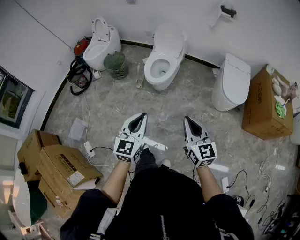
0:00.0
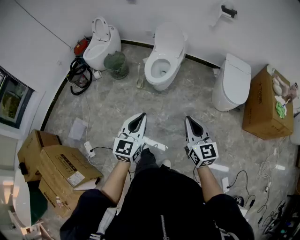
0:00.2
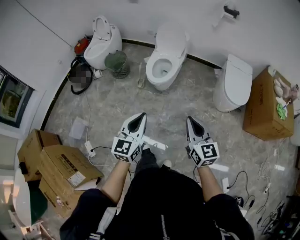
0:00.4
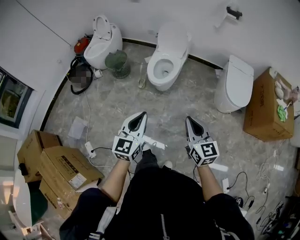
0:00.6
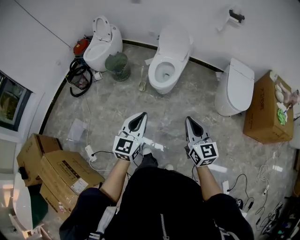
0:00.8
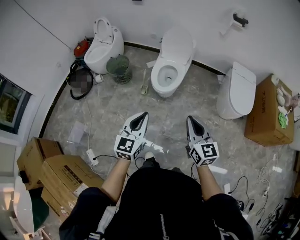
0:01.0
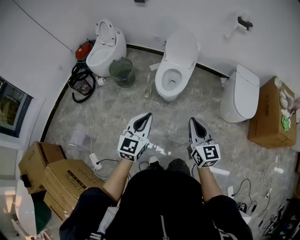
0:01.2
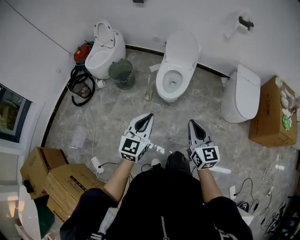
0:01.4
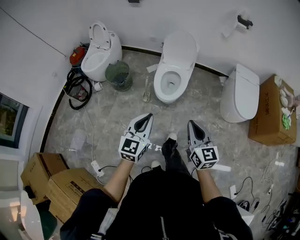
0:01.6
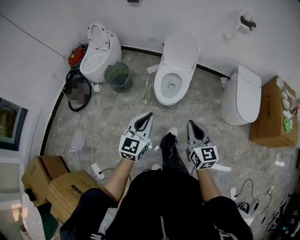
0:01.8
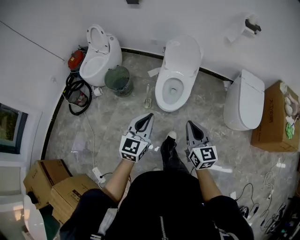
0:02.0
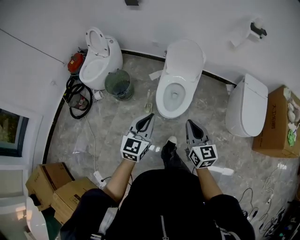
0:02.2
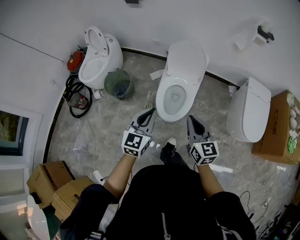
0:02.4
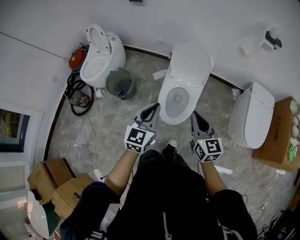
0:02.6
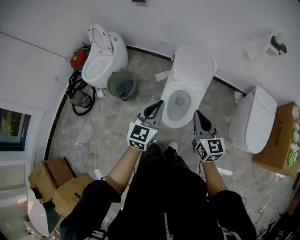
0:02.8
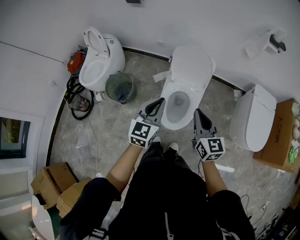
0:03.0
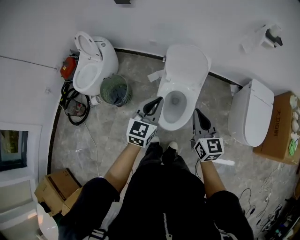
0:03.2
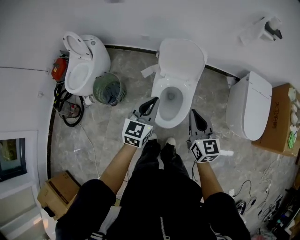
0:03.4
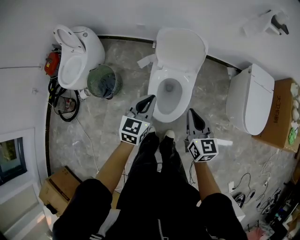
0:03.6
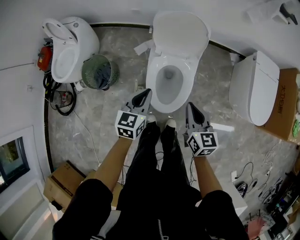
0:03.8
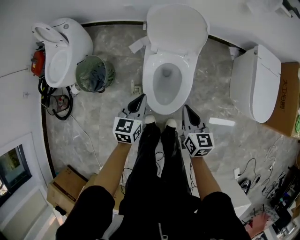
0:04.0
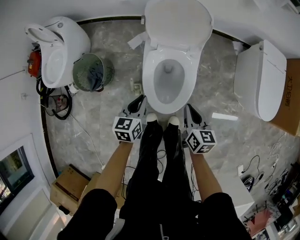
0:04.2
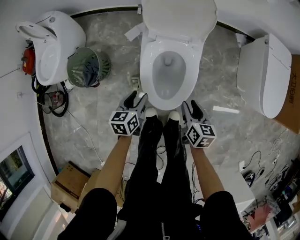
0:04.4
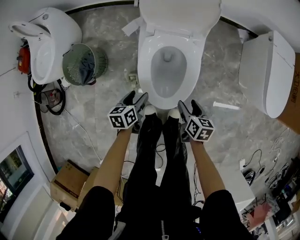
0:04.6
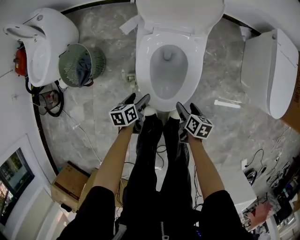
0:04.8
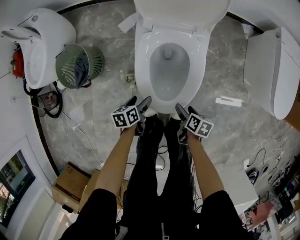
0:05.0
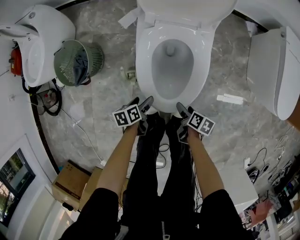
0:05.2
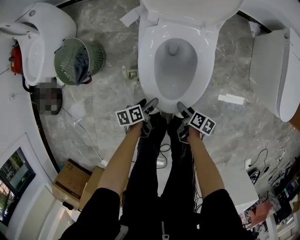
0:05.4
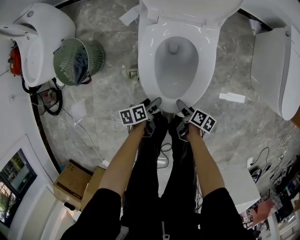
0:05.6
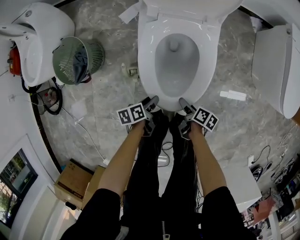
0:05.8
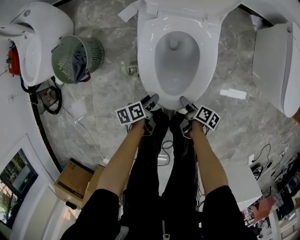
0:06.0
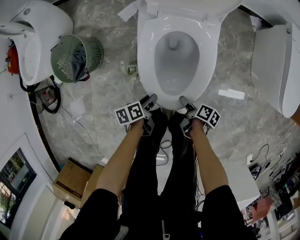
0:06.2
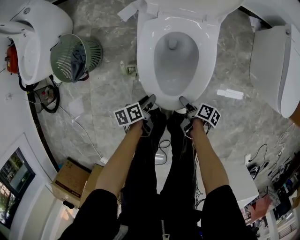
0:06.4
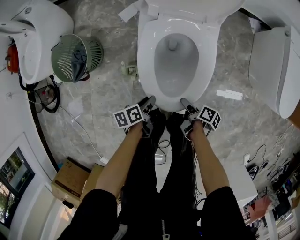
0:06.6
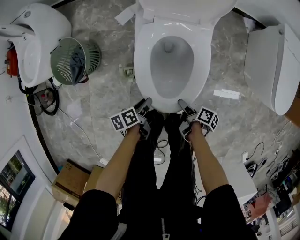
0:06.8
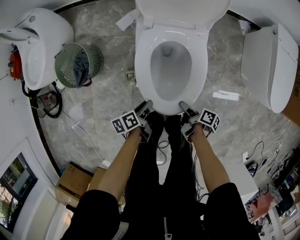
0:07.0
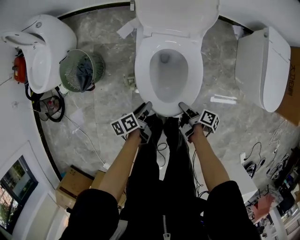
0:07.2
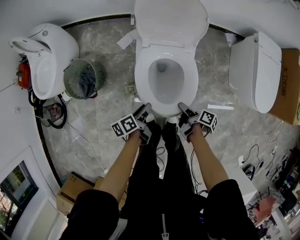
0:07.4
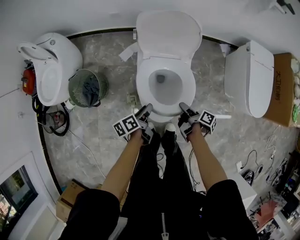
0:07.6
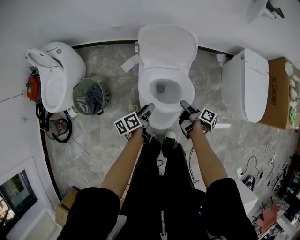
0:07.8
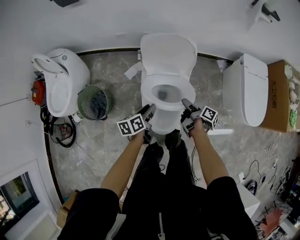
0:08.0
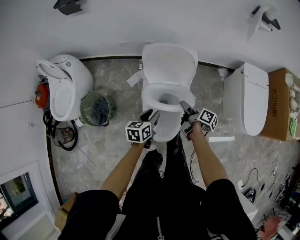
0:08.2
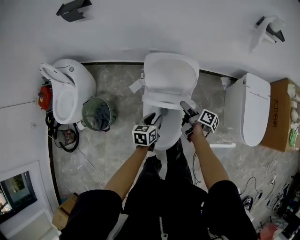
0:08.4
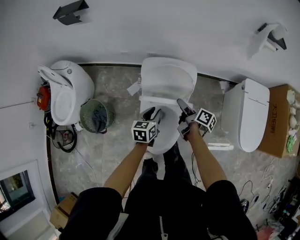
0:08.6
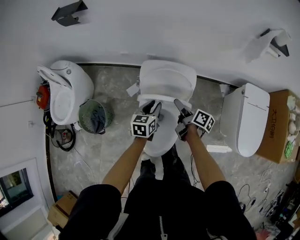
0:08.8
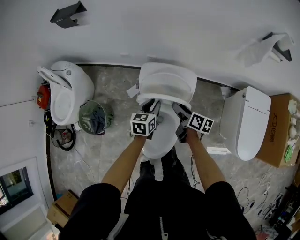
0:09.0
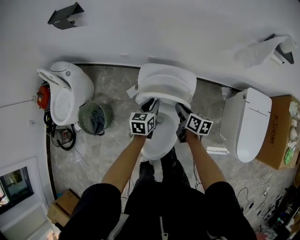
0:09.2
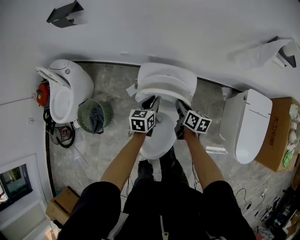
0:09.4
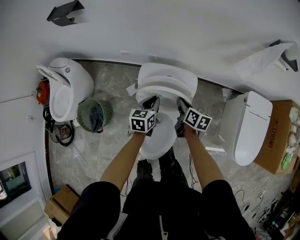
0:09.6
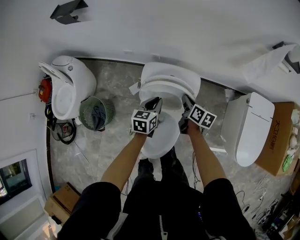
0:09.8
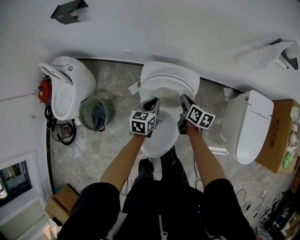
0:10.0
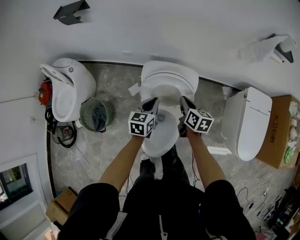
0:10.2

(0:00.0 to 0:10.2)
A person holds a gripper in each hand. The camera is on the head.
0:00.0 - 0:01.4: Both grippers move forward and to the left, roughly 25 cm.
0:01.4 - 0:03.0: The two grippers travel together, forward, some 50 cm.
0:03.0 - 0:04.4: Both grippers travel together downward, some 40 cm. The left gripper turns by about 40 degrees, and opens. Meanwhile the right gripper turns by about 40 degrees, and opens its fingers.
0:04.4 - 0:05.8: The grippers both shift downward by approximately 25 cm. The right gripper rolls clockwise, seen from behind, by some 40 degrees, and opens its fingers. The left gripper rotates about 40 degrees, and opens and closes again.
0:05.8 - 0:07.2: The two grippers go about 15 cm upward. The right gripper closes up.
0:07.2 - 0:08.8: Both grippers travel together forward and upward, some 40 cm. The left gripper twists roughly 50 degrees clockwise, seen from behind. The right gripper turns by approximately 30 degrees, and opens its fingers.
0:08.8 - 0:10.2: The right gripper swivels approximately 40 degrees, and closes.

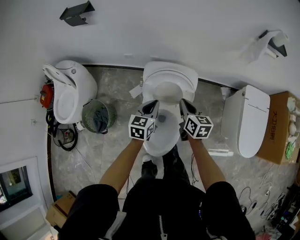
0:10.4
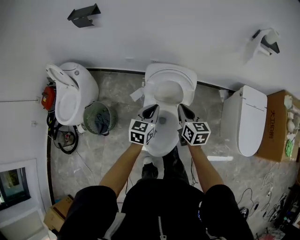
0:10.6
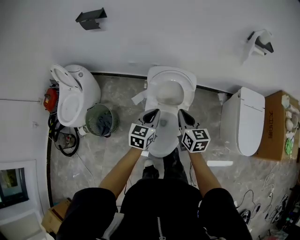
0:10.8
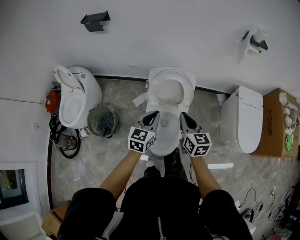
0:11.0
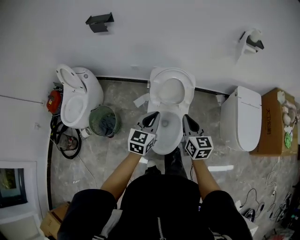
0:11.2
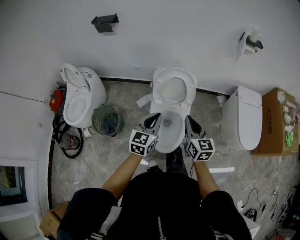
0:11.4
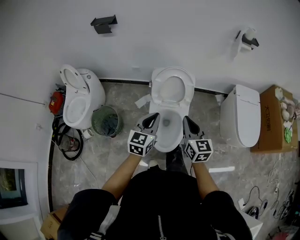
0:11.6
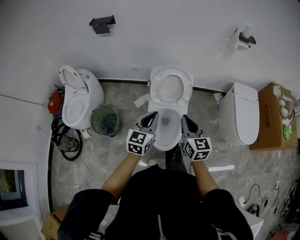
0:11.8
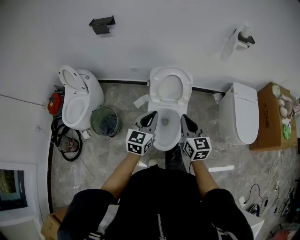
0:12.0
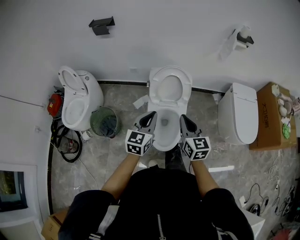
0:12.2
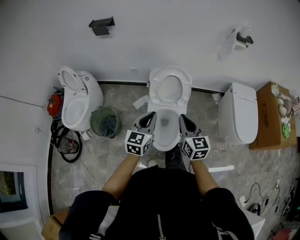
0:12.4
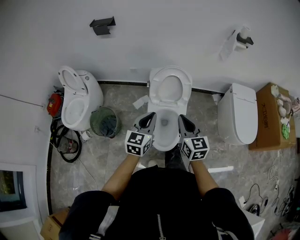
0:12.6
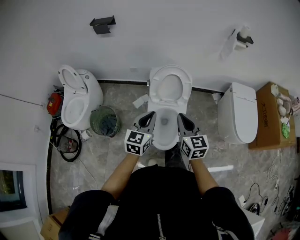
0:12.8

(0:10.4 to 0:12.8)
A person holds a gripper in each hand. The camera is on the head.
0:10.4 - 0:11.6: Both grippers move backward and upward, some 30 cm. The right gripper rotates roughly 20 degrees.
0:11.6 - 0:12.8: The grippers make only small movements.

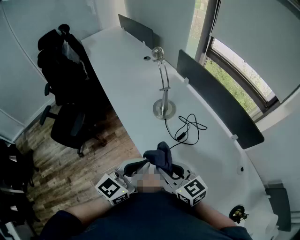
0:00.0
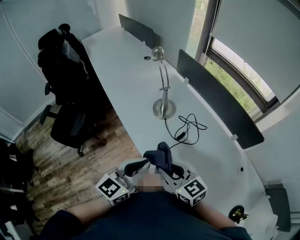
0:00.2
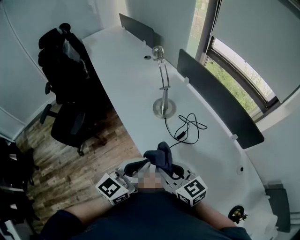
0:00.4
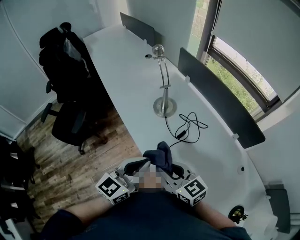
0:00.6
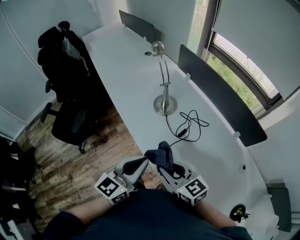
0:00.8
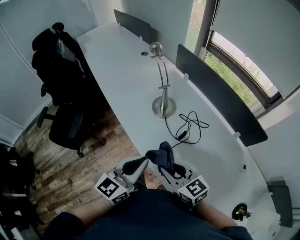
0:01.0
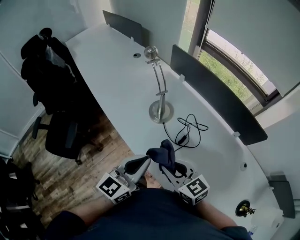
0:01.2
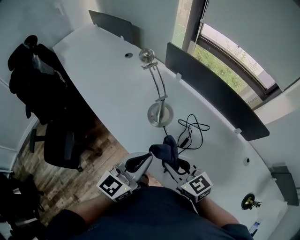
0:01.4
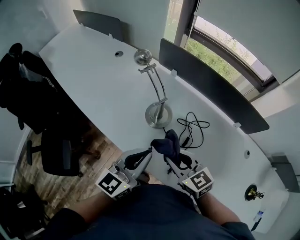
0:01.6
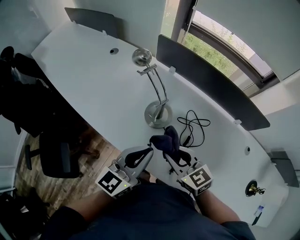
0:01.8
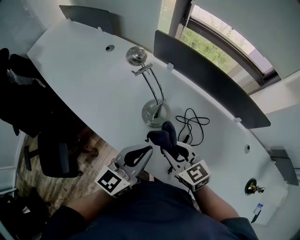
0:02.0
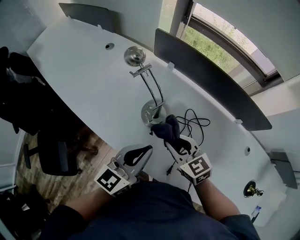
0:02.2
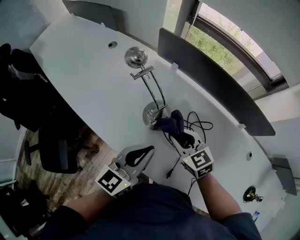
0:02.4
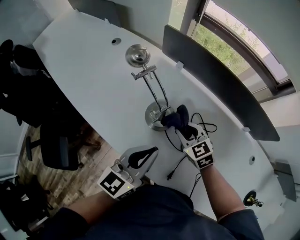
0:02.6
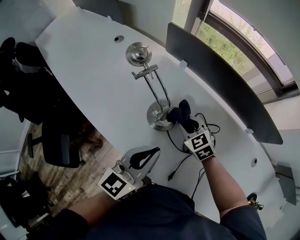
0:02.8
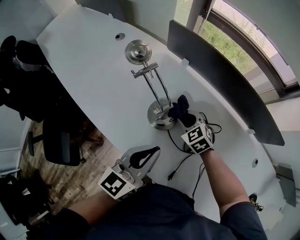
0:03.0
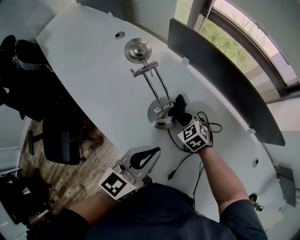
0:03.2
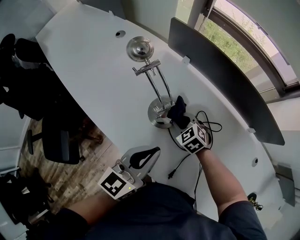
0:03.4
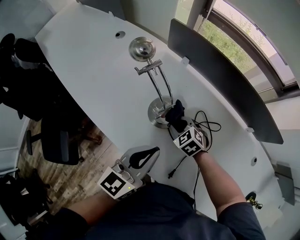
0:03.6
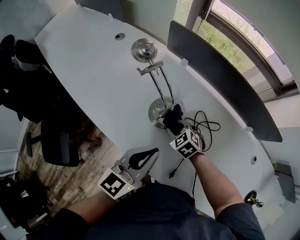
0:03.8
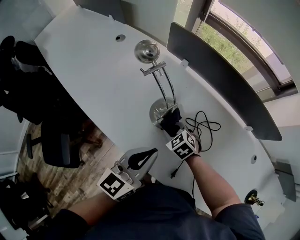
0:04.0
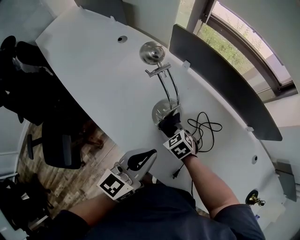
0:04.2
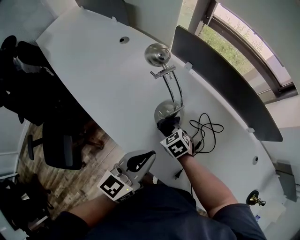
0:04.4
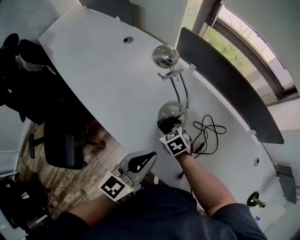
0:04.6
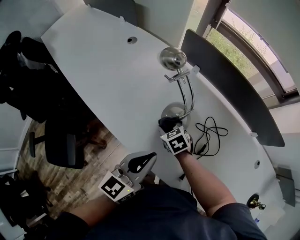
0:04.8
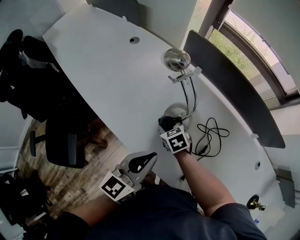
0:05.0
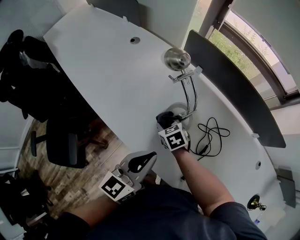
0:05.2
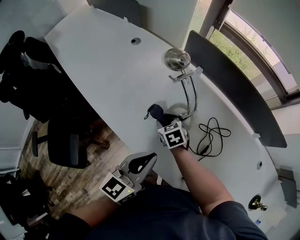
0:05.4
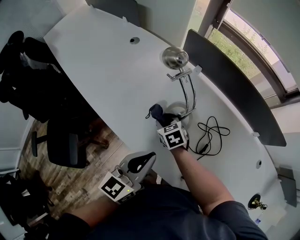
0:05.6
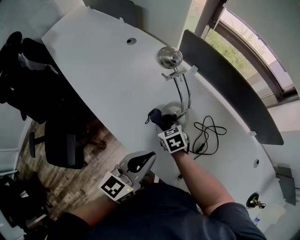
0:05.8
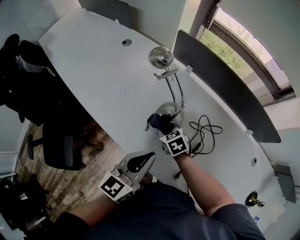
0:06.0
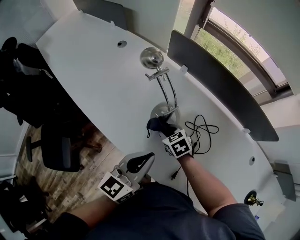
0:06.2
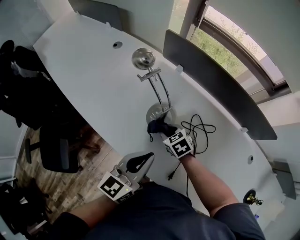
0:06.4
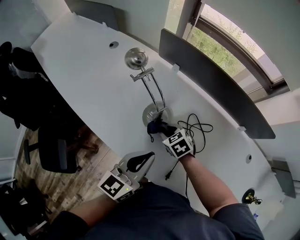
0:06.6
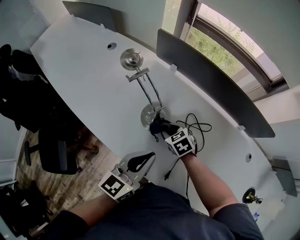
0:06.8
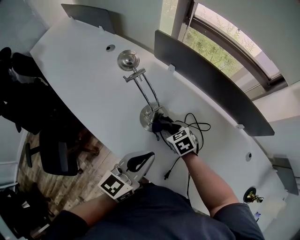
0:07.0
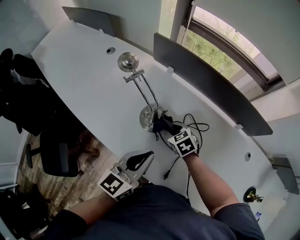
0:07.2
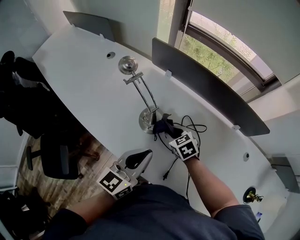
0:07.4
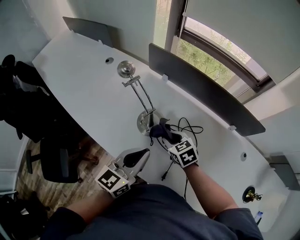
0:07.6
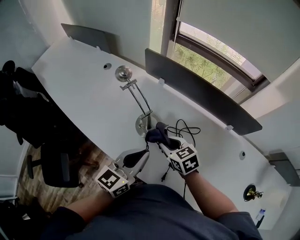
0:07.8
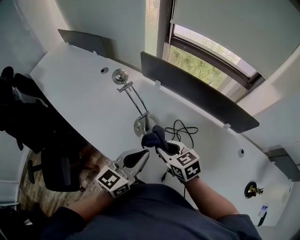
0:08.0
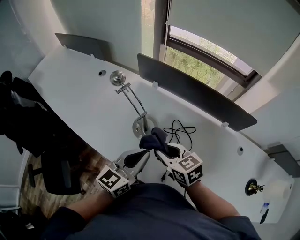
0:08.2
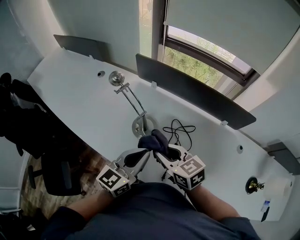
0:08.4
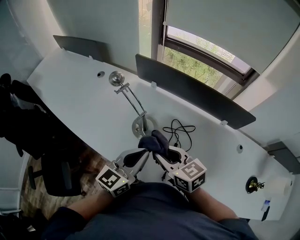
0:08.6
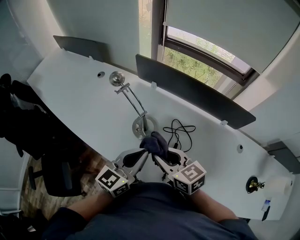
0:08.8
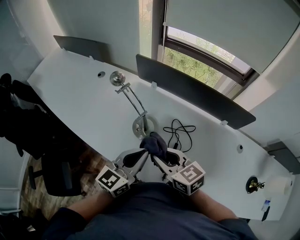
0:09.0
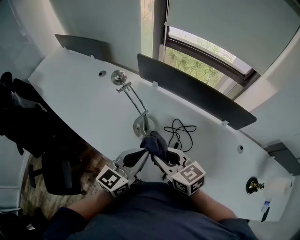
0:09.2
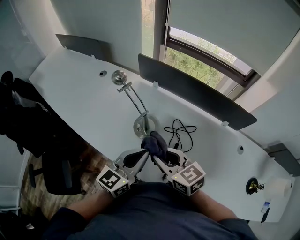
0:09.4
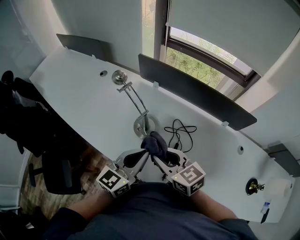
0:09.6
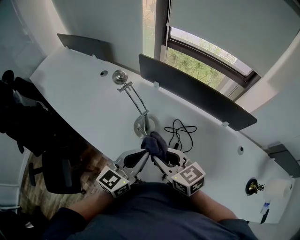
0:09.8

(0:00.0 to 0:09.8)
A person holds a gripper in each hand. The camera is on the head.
0:00.0 - 0:01.4: The grippers both shift forward by roughly 15 cm.
0:01.4 - 0:02.8: The right gripper is displaced forward and downward by some 25 cm, and turns by about 30 degrees, while the left gripper is displaced forward by roughly 10 cm.
0:02.8 - 0:04.2: The right gripper is displaced to the left and downward by about 10 cm.
0:04.2 - 0:05.6: The right gripper heads to the left and forward, covering approximately 10 cm.
0:05.6 - 0:07.0: The right gripper is displaced to the right by some 15 cm, while the left gripper travels to the right by some 10 cm.
0:07.0 - 0:08.4: The left gripper goes some 5 cm upward. The right gripper goes roughly 25 cm upward and backward, and swivels approximately 30 degrees.
0:08.4 - 0:09.8: The grippers stay close to where they were, moving slightly.

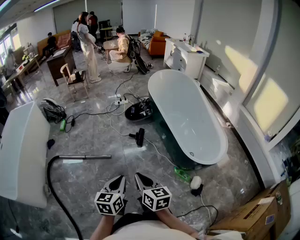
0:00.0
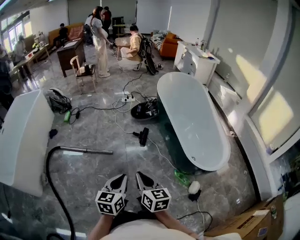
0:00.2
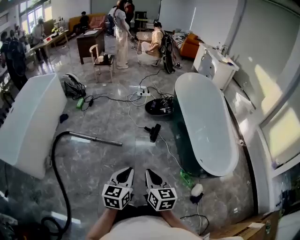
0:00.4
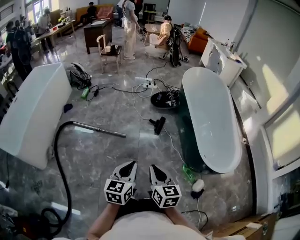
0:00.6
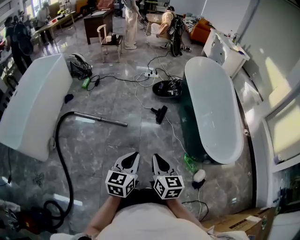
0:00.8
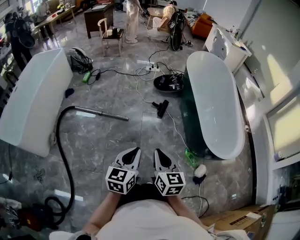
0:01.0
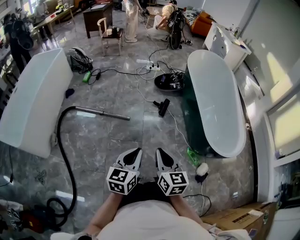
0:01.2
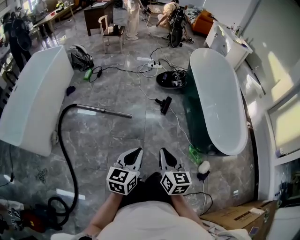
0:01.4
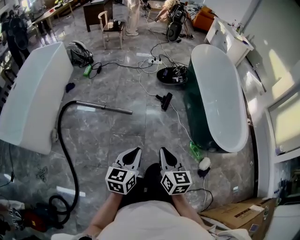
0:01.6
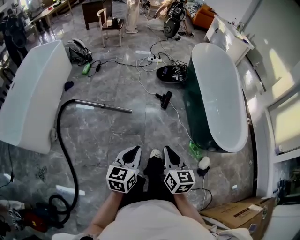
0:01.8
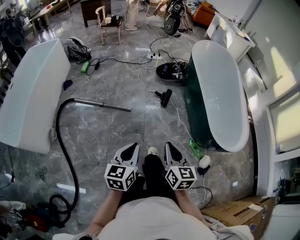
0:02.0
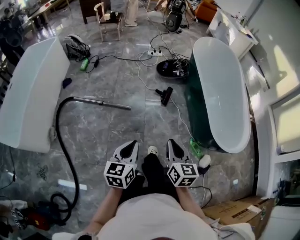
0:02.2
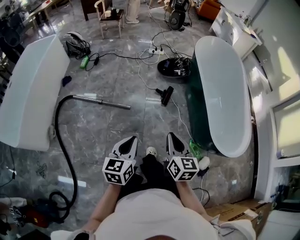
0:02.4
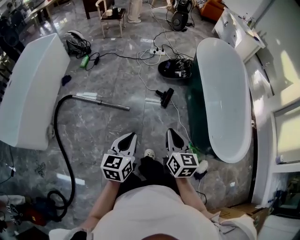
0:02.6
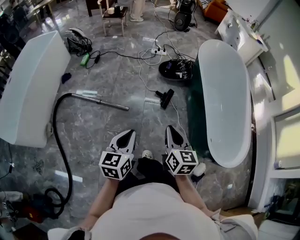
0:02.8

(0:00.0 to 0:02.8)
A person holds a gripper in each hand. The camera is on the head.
0:00.0 - 0:01.4: The grippers both shift to the left by about 5 cm.
0:01.4 - 0:02.8: Both grippers move forward, roughly 20 cm.
